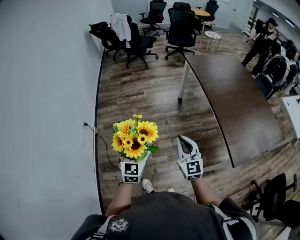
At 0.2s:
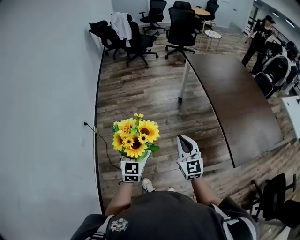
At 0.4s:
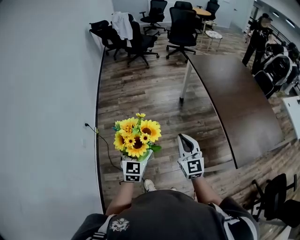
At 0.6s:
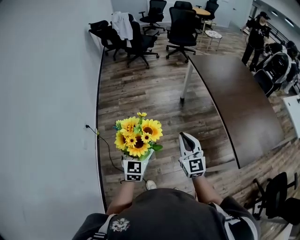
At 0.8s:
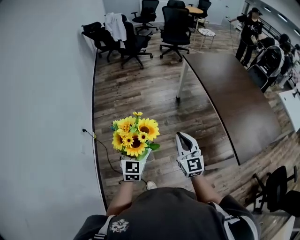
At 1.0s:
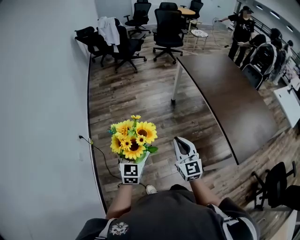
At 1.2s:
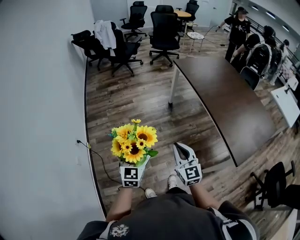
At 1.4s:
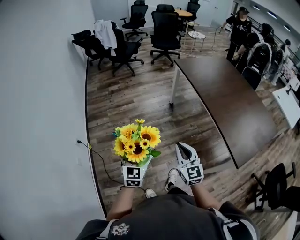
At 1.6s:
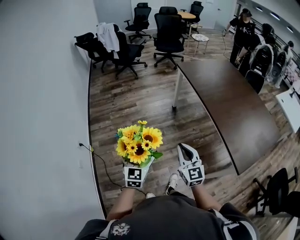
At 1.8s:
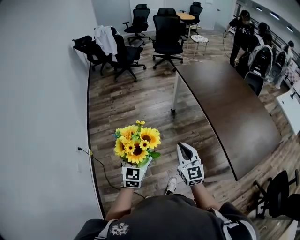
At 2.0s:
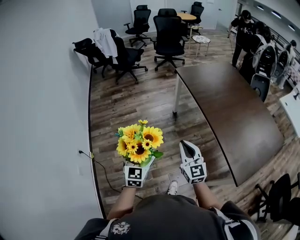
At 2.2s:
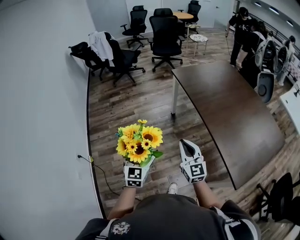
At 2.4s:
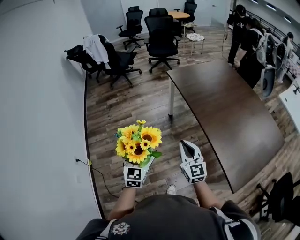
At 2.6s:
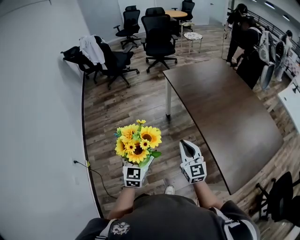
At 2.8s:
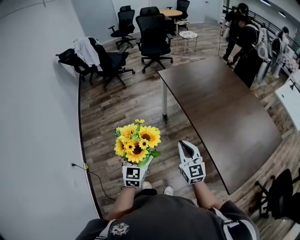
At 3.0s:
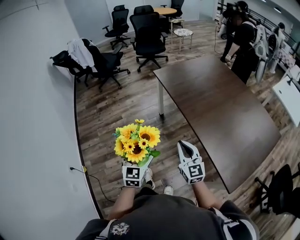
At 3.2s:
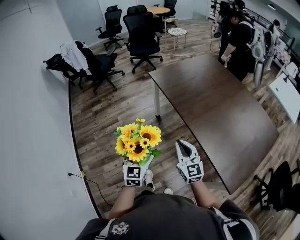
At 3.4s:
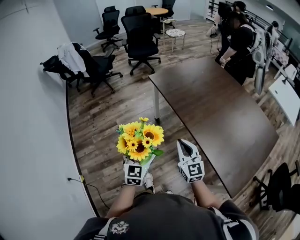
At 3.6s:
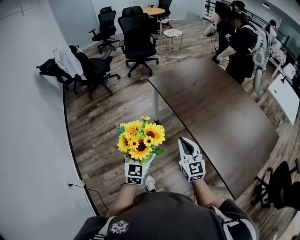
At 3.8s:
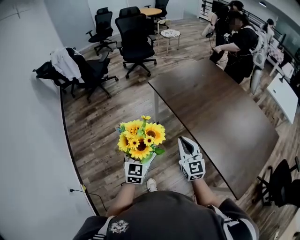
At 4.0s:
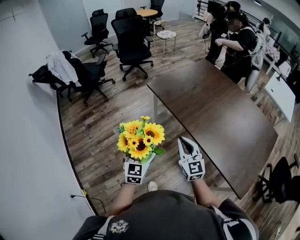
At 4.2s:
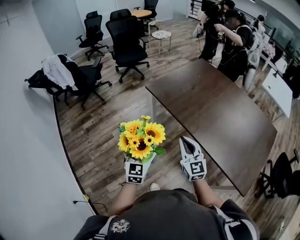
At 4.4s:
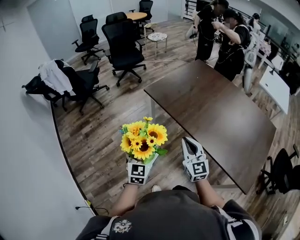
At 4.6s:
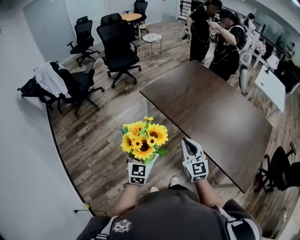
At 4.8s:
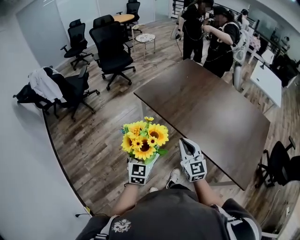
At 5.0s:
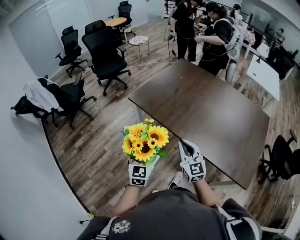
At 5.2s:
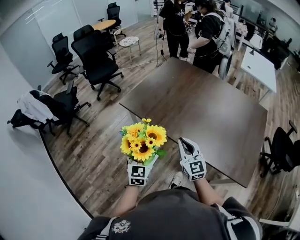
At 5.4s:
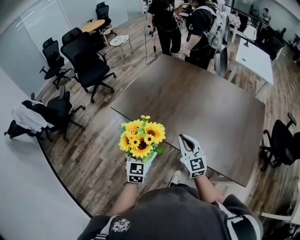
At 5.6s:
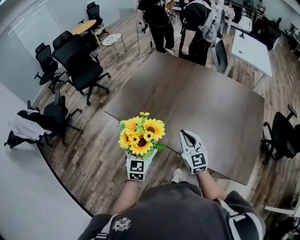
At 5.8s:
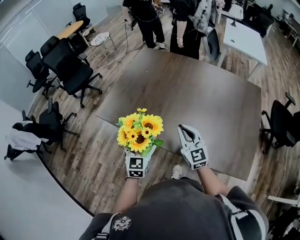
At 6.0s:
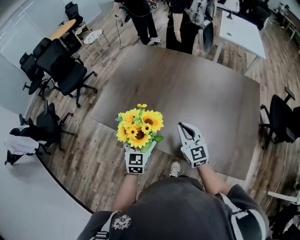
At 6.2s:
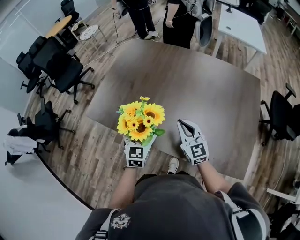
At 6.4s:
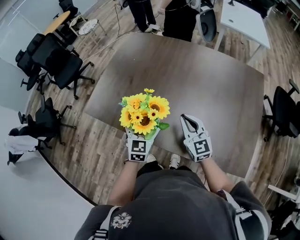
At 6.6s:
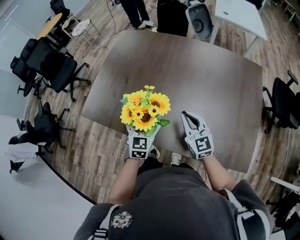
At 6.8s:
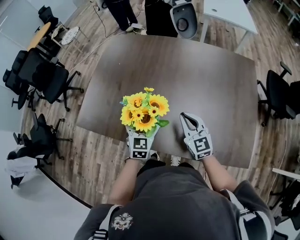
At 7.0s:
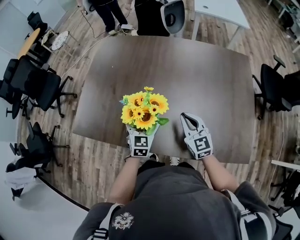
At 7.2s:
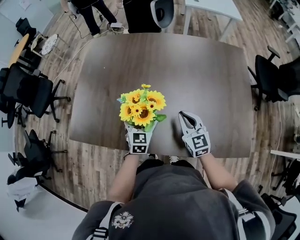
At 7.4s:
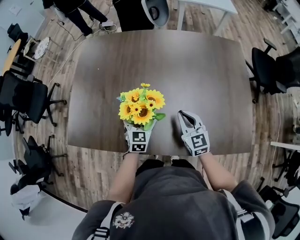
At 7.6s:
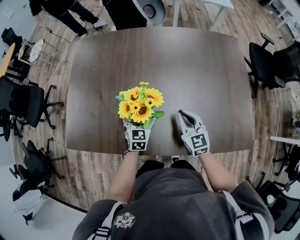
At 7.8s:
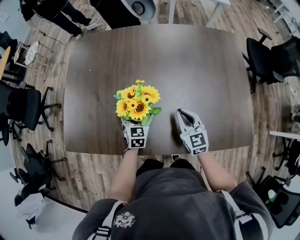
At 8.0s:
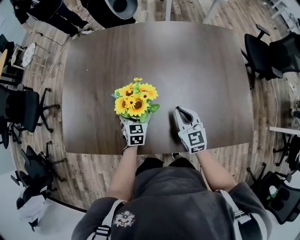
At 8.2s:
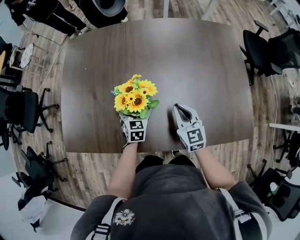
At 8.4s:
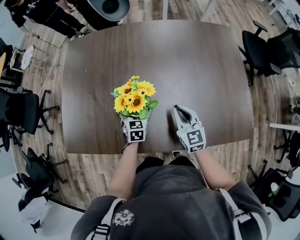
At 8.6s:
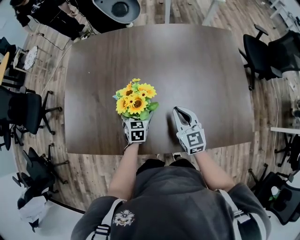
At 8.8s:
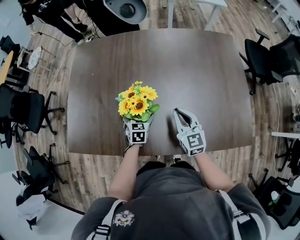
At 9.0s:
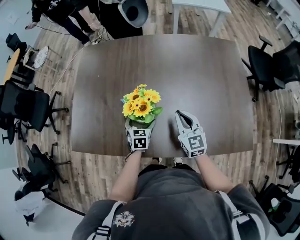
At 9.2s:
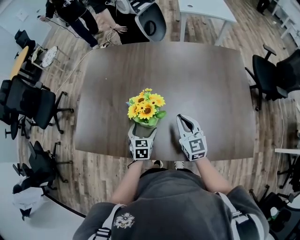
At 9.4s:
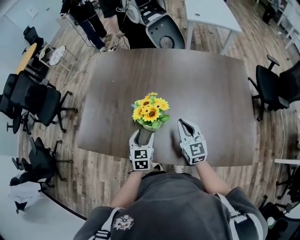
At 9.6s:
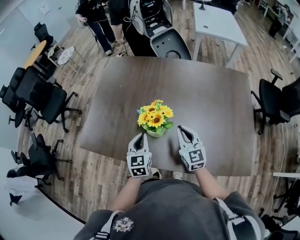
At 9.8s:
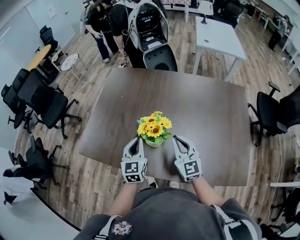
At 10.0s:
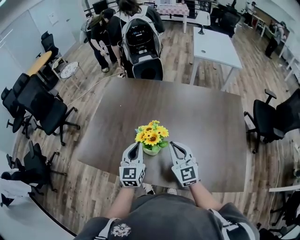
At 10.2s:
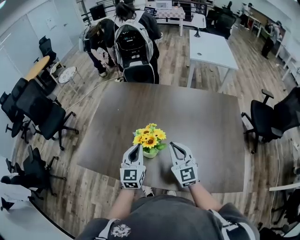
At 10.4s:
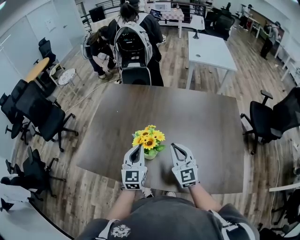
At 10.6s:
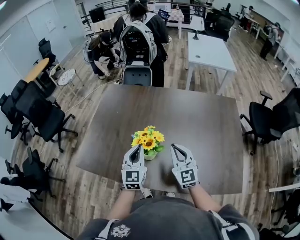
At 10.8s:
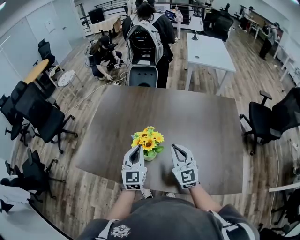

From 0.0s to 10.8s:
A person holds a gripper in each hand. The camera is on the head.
From 0.0s to 1.6s: The grippers both shift forward by about 10 cm.
From 1.6s to 3.0s: The left gripper moves forward and to the right, about 30 cm. Meanwhile the right gripper shifts about 25 cm to the right and forward.
From 3.0s to 4.6s: The left gripper goes approximately 25 cm forward, and turns by approximately 20 degrees, while the right gripper goes some 20 cm forward and to the left.
From 4.6s to 6.2s: The left gripper heads forward and to the right, covering some 40 cm, and rotates some 20 degrees; the right gripper moves to the right and forward, roughly 35 cm.
From 6.2s to 7.8s: The right gripper moves downward, forward and to the right, about 15 cm, and rotates approximately 30 degrees. Meanwhile the left gripper travels downward, forward and to the right by some 25 cm, and rotates roughly 20 degrees.
From 7.8s to 9.2s: The right gripper is displaced upward by roughly 5 cm. Meanwhile the left gripper moves backward, roughly 5 cm.
From 9.2s to 10.8s: The right gripper is displaced upward by roughly 10 cm. Meanwhile the left gripper heads upward, covering about 25 cm, tips its fingers upward by approximately 30 degrees, and closes up.

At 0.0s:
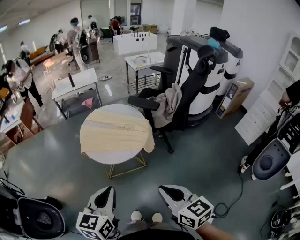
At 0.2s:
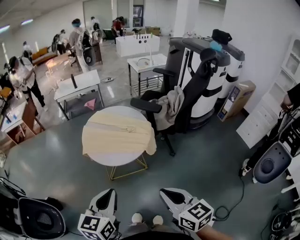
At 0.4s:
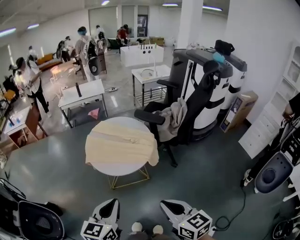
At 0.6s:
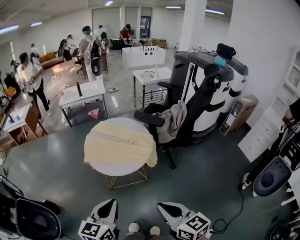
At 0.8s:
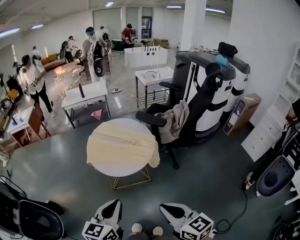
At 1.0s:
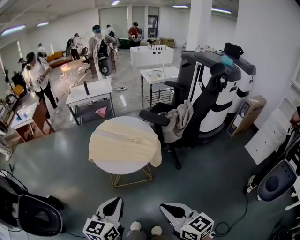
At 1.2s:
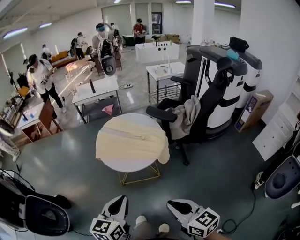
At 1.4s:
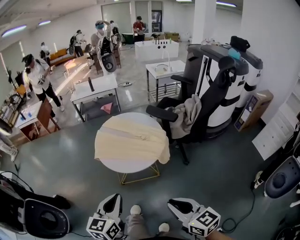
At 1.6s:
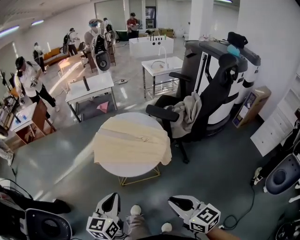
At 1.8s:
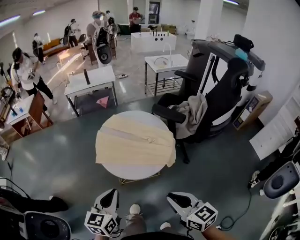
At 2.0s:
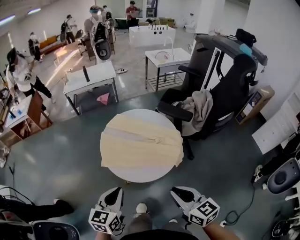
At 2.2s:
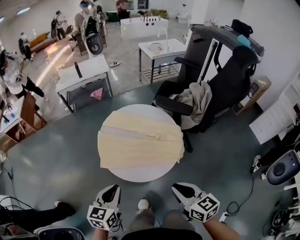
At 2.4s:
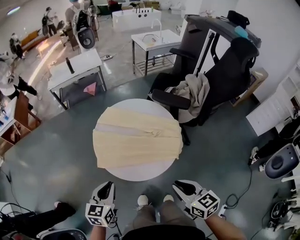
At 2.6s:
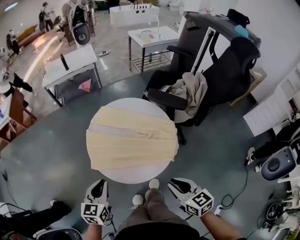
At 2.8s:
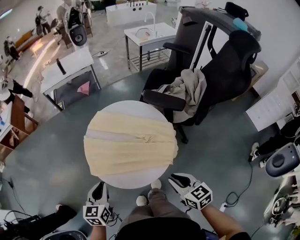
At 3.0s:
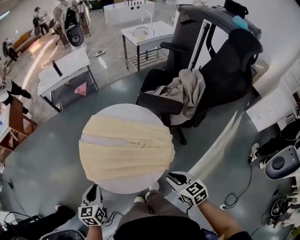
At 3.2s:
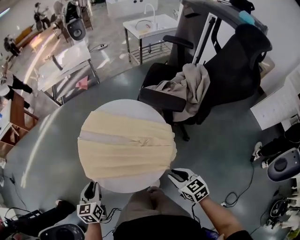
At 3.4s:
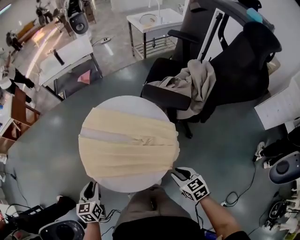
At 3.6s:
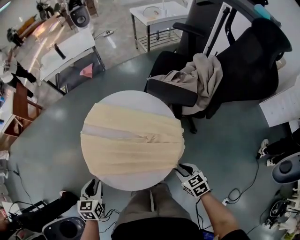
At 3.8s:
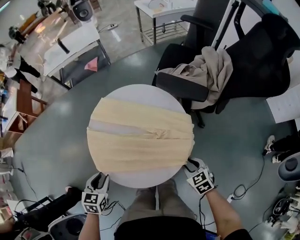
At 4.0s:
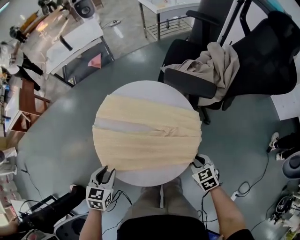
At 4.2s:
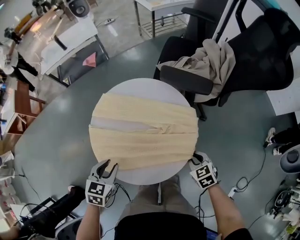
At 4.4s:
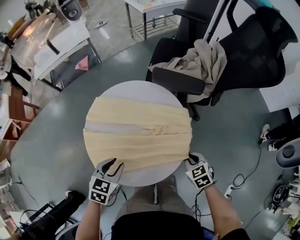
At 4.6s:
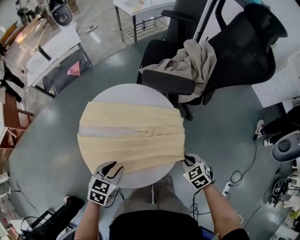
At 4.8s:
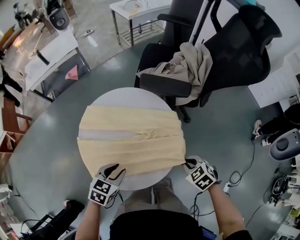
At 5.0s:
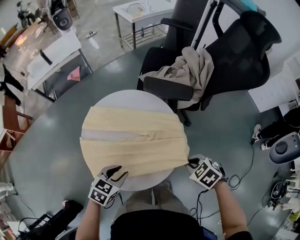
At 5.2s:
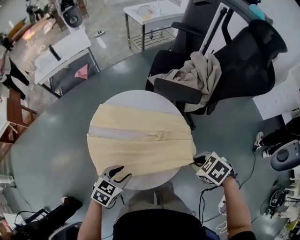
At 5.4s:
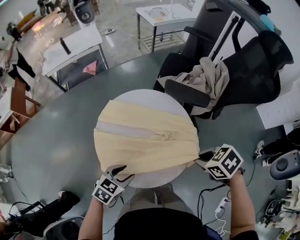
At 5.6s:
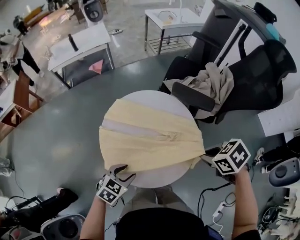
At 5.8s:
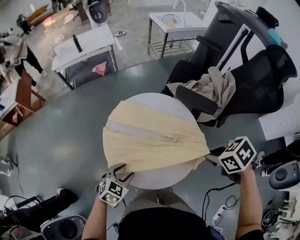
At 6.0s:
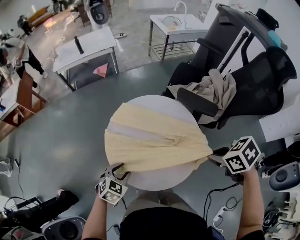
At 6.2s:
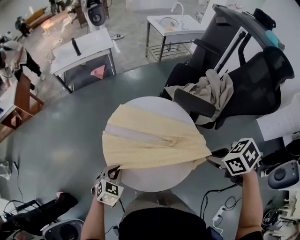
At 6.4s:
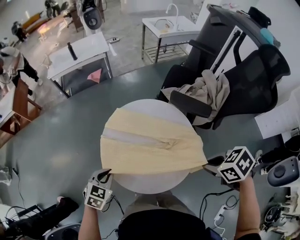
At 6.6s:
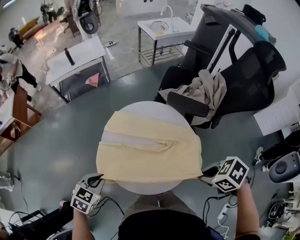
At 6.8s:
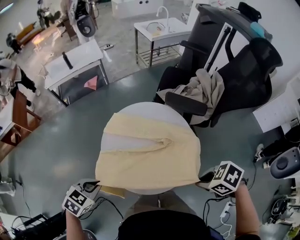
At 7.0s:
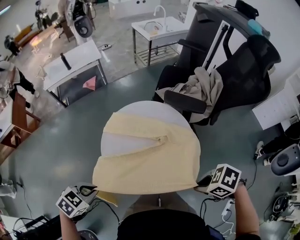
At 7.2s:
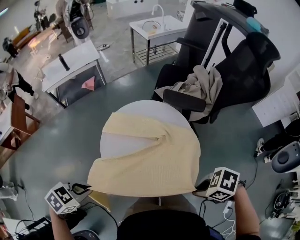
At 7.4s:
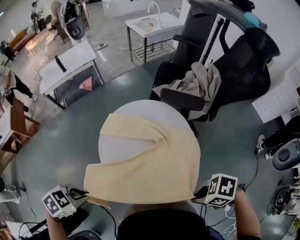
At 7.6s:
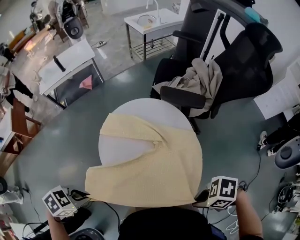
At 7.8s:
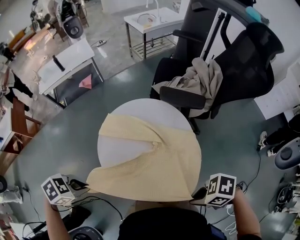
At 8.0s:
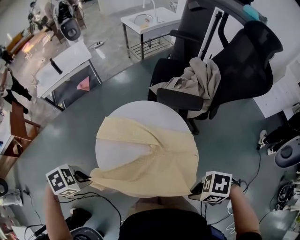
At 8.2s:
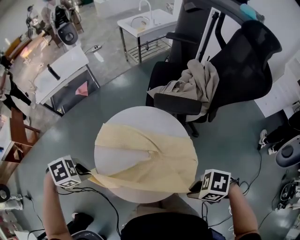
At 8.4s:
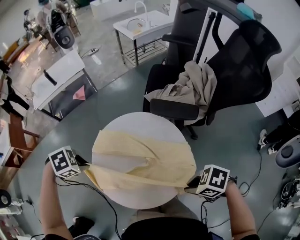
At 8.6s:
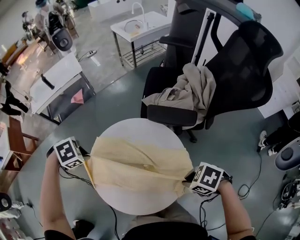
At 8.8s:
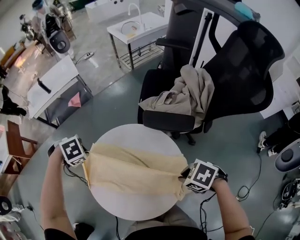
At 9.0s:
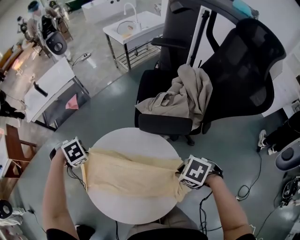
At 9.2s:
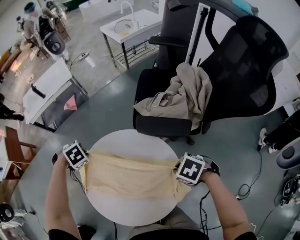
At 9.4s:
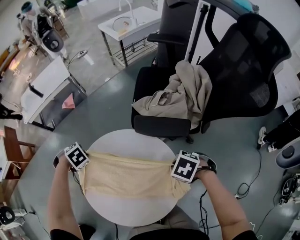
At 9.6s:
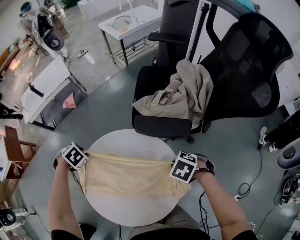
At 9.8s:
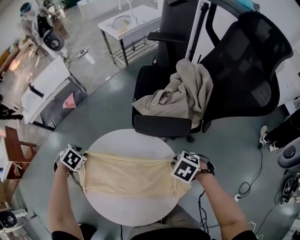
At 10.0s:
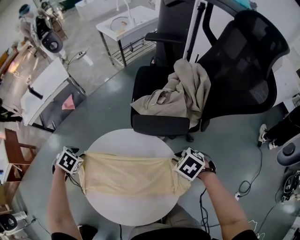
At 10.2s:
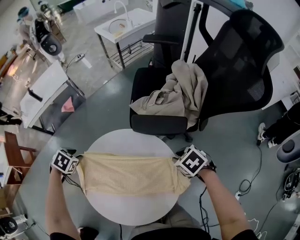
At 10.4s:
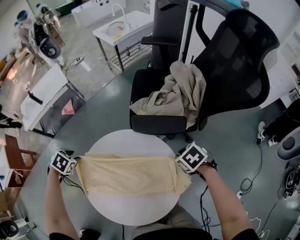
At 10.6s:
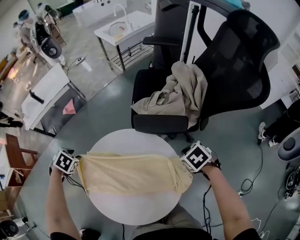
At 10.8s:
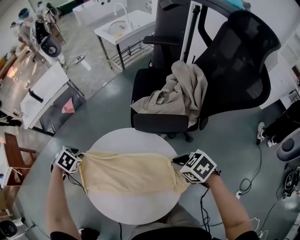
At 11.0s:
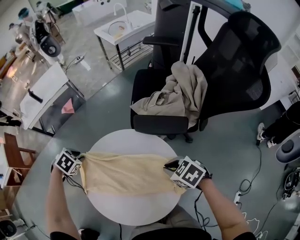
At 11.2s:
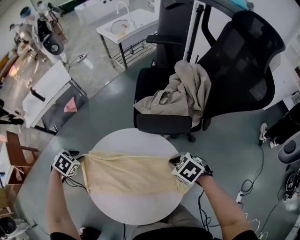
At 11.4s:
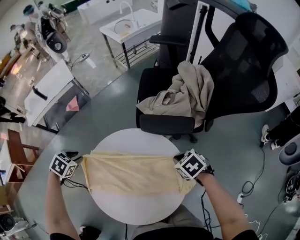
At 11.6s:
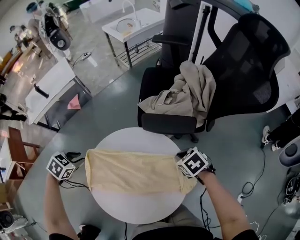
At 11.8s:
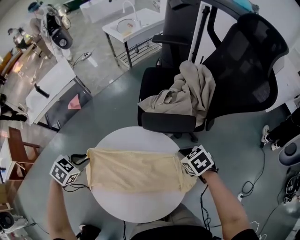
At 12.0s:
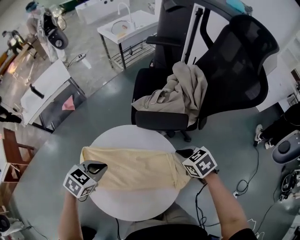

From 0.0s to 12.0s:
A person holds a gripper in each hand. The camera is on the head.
From 0.0s to 1.6s: The left gripper heads forward and downward, covering about 10 cm. The right gripper moves approximately 5 cm.
From 1.6s to 3.0s: The right gripper heads forward and downward, covering approximately 30 cm, while the left gripper shifts approximately 30 cm forward, downward and to the left.
From 3.0s to 4.4s: The left gripper ends up roughly 10 cm from where it was, turns by approximately 40 degrees, and opens. Meanwhile the right gripper shifts about 10 cm downward, and swivels about 20 degrees.
From 4.4s to 6.0s: The left gripper moves some 5 cm. Meanwhile the right gripper travels upward by approximately 25 cm, and rotates approximately 30 degrees.
From 6.0s to 7.6s: The right gripper shifts by approximately 20 cm, and turns by some 40 degrees; the left gripper moves upward, approximately 15 cm, turns by about 40 degrees, and closes up.
From 7.6s to 9.0s: The left gripper moves some 40 cm, and changes its angle by some 30 degrees, while the right gripper shifts by some 30 cm, and changes its angle by about 30 degrees.
From 9.0s to 10.4s: The left gripper ends up about 5 cm from where it was, turns by approximately 30 degrees, and opens up, while the right gripper shifts by about 10 cm, and rotates roughly 20 degrees.
From 10.4s to 12.0s: The left gripper changes place by approximately 20 cm, changes its angle by about 30 degrees, and closes its fingers; the right gripper moves up and down over some 5 cm, changing direction 2 times.
